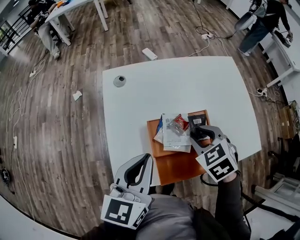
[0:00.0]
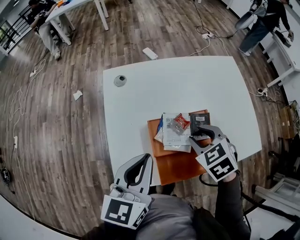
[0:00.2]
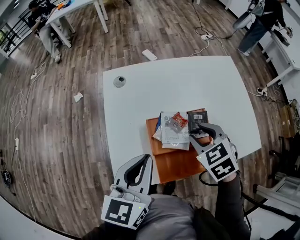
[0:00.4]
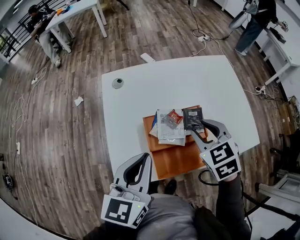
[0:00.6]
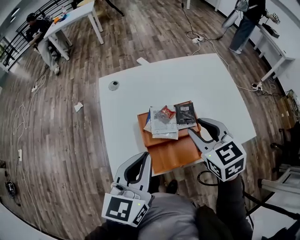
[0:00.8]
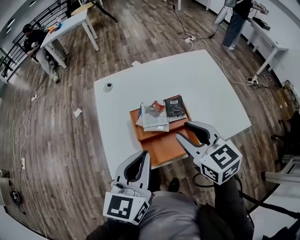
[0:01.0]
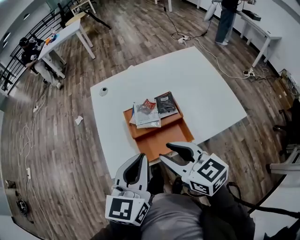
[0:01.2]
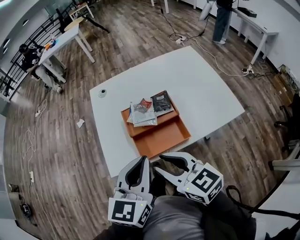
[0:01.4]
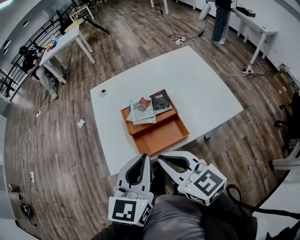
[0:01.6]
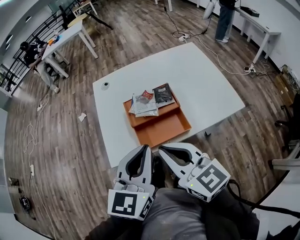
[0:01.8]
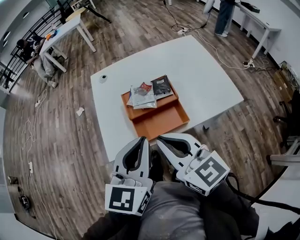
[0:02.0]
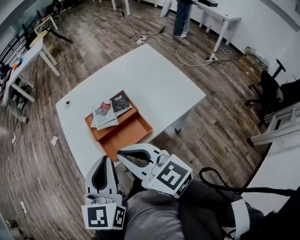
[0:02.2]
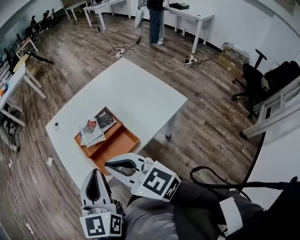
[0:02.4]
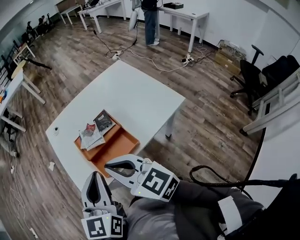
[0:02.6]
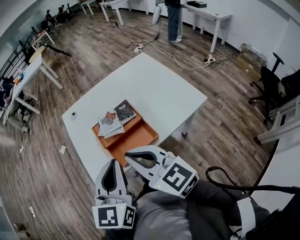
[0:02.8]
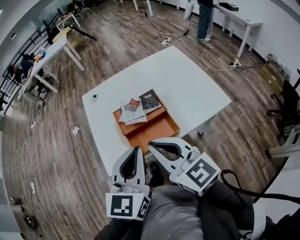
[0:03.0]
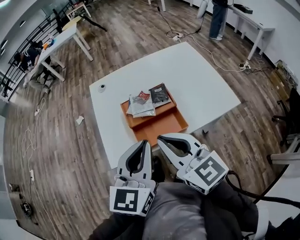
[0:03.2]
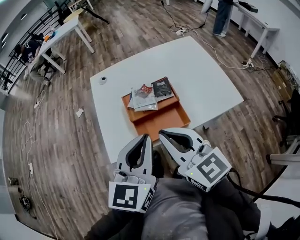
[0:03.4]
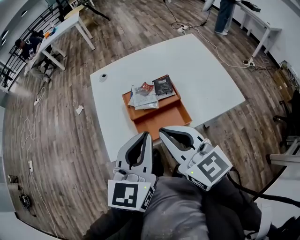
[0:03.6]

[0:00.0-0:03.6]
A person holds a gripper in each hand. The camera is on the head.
0:00.0 to 0:01.8: The left gripper moves backward and to the right, approximately 20 cm. The right gripper moves backward and upward, some 25 cm, and points its fingers about 50 degrees further upward.
0:01.8 to 0:03.6: There are only small adjustments of the grippers.

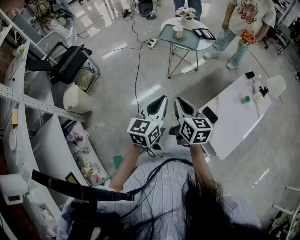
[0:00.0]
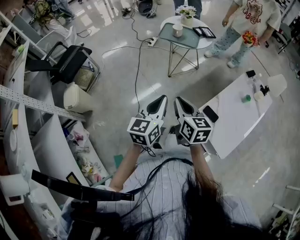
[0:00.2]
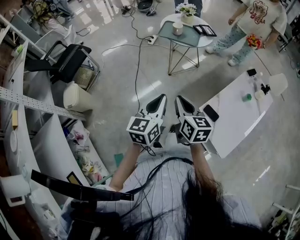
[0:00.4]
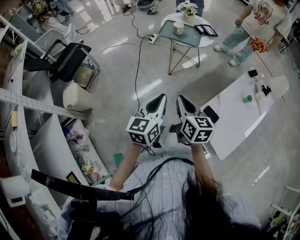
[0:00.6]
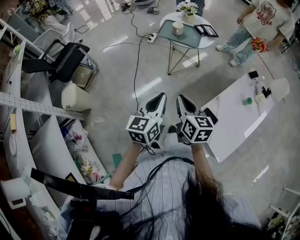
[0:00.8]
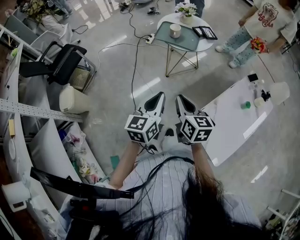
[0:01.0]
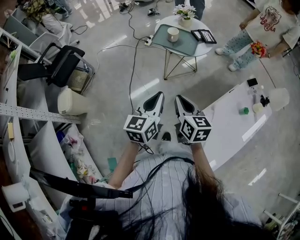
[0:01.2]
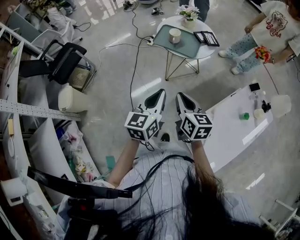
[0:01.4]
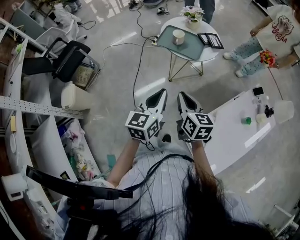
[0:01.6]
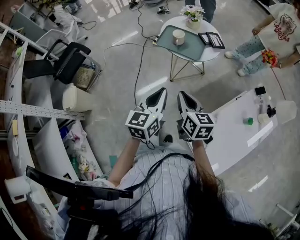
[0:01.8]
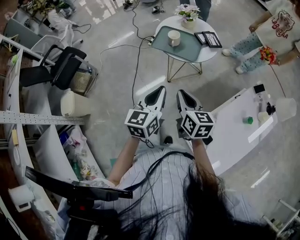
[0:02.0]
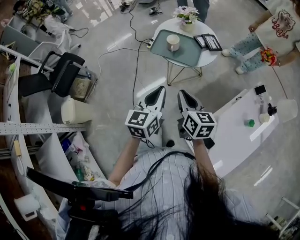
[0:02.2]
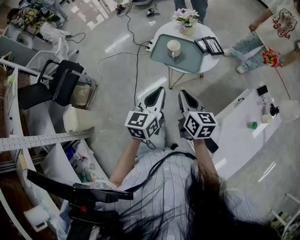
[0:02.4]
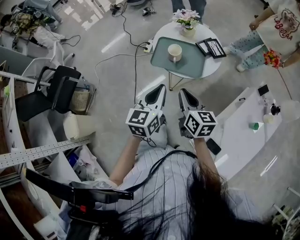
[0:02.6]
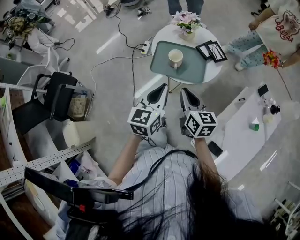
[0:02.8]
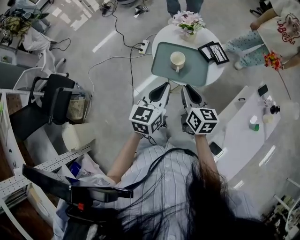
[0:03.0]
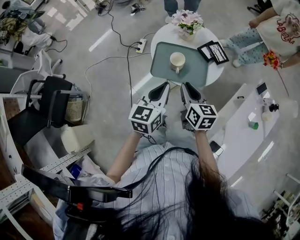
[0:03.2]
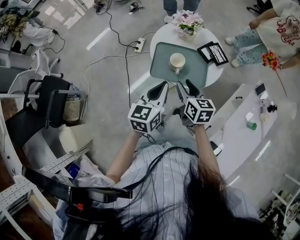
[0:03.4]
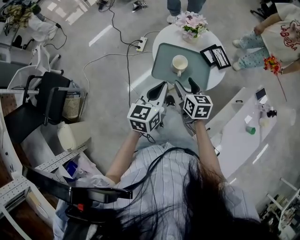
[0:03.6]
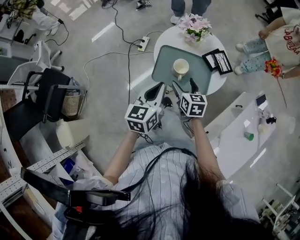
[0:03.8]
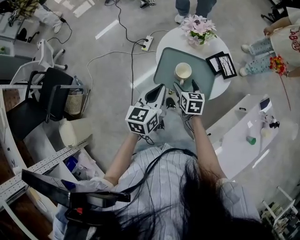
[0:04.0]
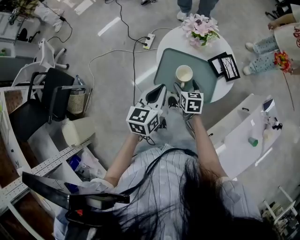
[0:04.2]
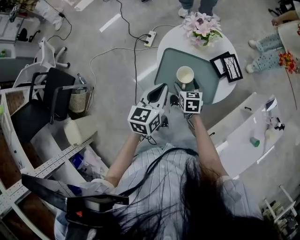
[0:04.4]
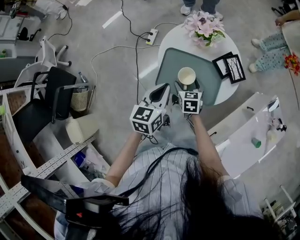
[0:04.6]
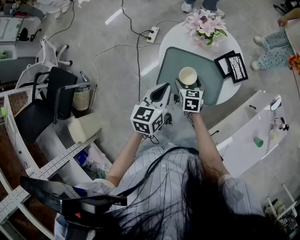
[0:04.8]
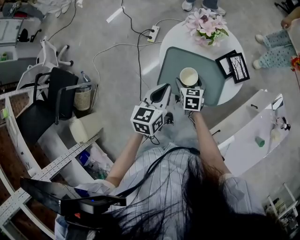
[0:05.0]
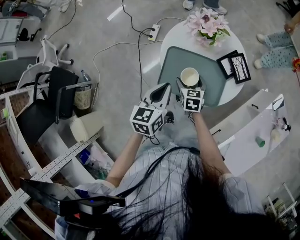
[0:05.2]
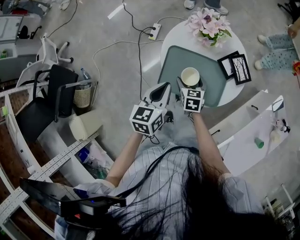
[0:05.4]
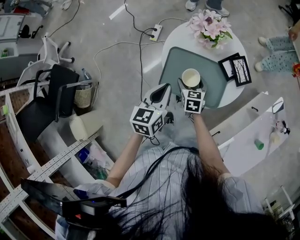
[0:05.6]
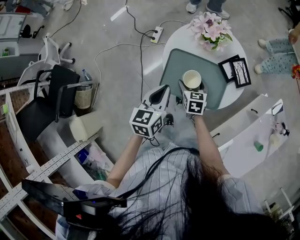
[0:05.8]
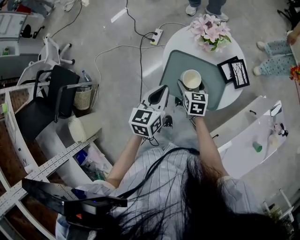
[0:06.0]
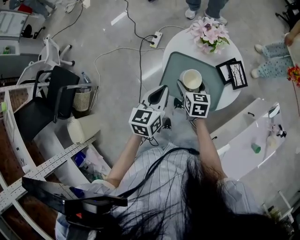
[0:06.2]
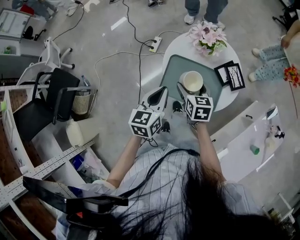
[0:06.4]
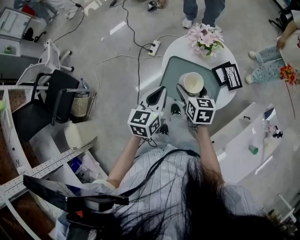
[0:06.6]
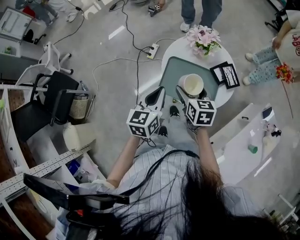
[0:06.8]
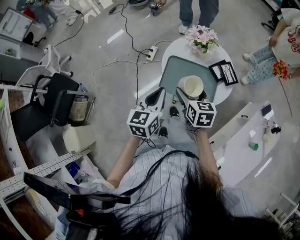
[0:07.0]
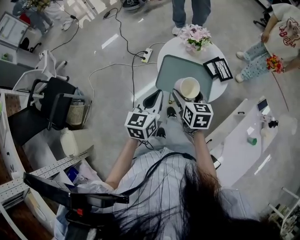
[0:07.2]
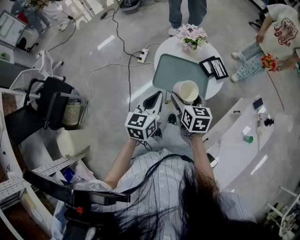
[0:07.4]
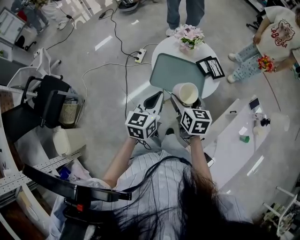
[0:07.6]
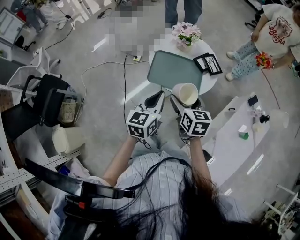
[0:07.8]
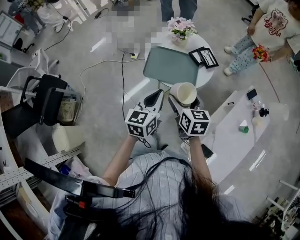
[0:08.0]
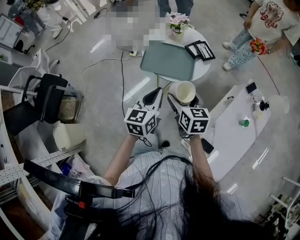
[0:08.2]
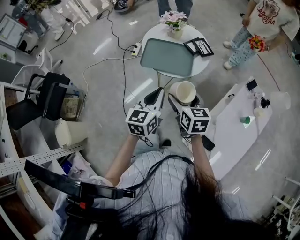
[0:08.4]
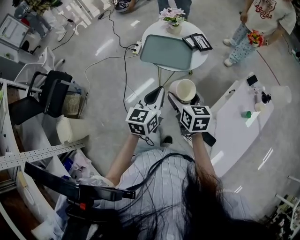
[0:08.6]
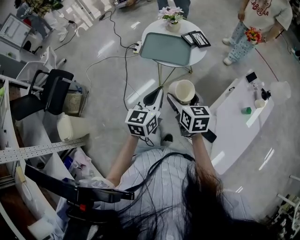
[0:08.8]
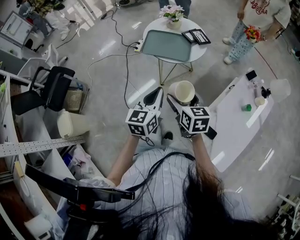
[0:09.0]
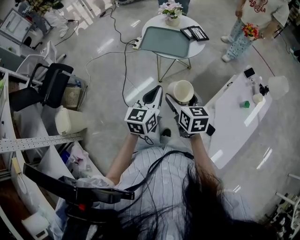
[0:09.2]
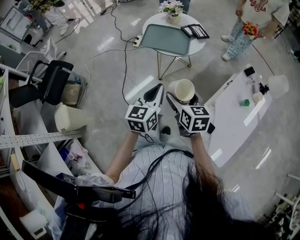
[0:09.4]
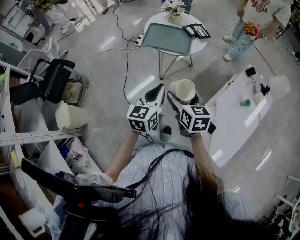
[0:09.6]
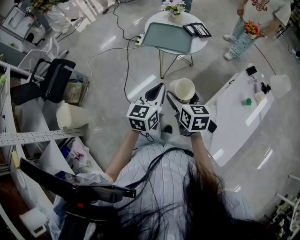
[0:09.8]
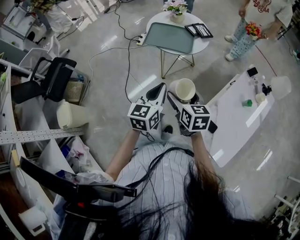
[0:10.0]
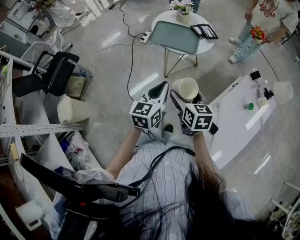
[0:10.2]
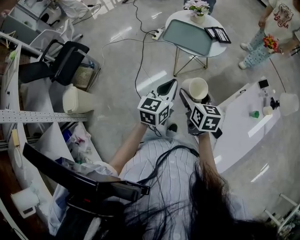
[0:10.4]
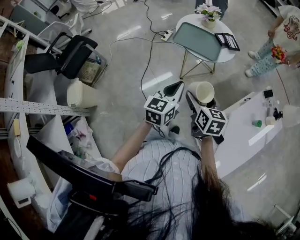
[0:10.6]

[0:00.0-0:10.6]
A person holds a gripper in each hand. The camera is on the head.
0:00.0 to 0:01.6: The right gripper goes about 20 cm forward and to the right. The left gripper moves forward, approximately 20 cm.
0:01.6 to 0:03.0: The two grippers go roughly 30 cm forward.
0:03.0 to 0:04.6: The right gripper moves downward and forward, some 25 cm, rotates about 30 degrees, and opens. The left gripper moves forward and downward, approximately 15 cm.
0:04.6 to 0:06.0: There are only small adjustments of the grippers.
0:06.0 to 0:07.6: The right gripper goes approximately 25 cm upward and backward. The left gripper shifts roughly 15 cm backward and upward.
0:07.6 to 0:09.0: The right gripper shifts about 25 cm backward, while the left gripper shifts about 25 cm backward and to the right.
0:09.0 to 0:10.6: The grippers stay close to where they were, moving slightly.

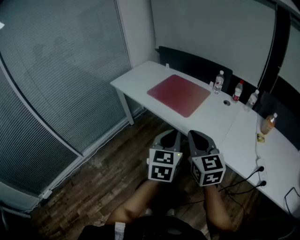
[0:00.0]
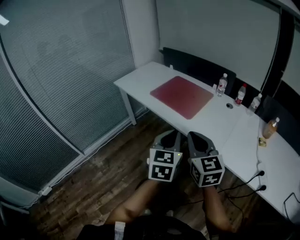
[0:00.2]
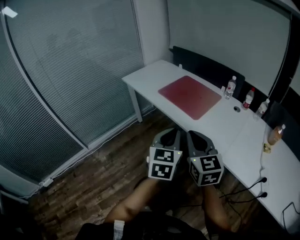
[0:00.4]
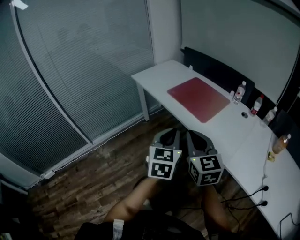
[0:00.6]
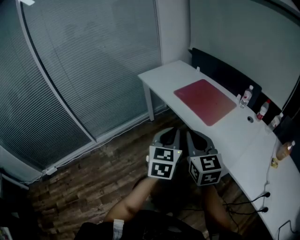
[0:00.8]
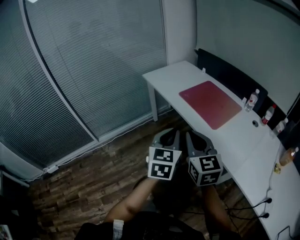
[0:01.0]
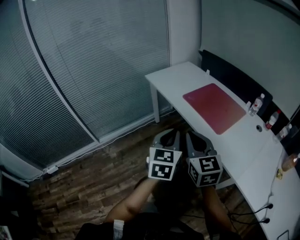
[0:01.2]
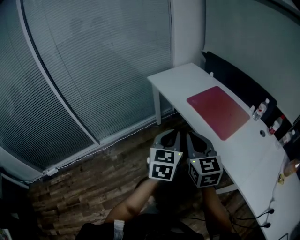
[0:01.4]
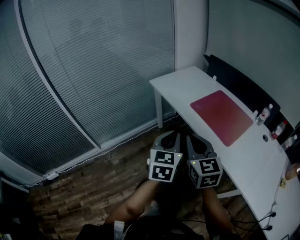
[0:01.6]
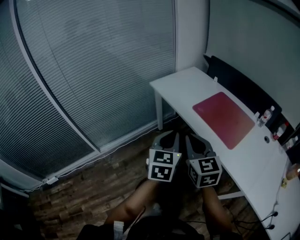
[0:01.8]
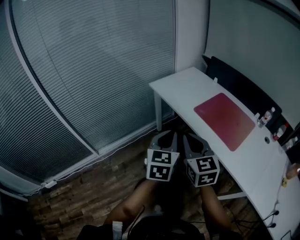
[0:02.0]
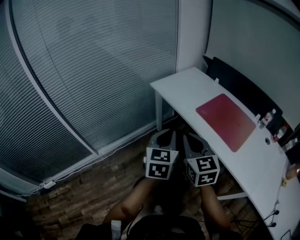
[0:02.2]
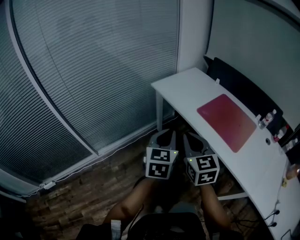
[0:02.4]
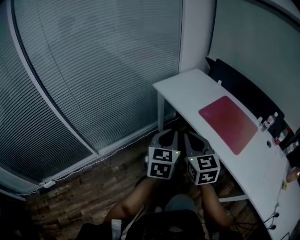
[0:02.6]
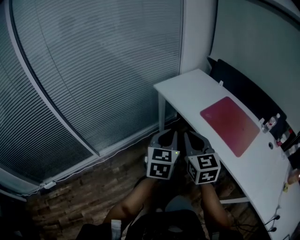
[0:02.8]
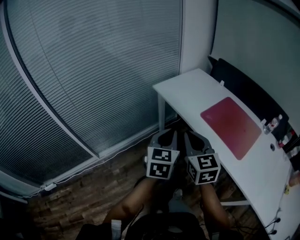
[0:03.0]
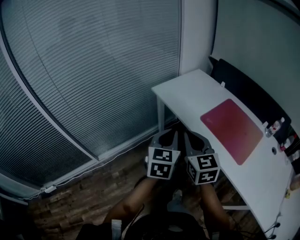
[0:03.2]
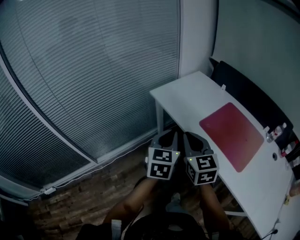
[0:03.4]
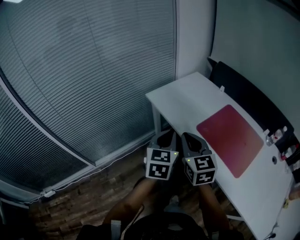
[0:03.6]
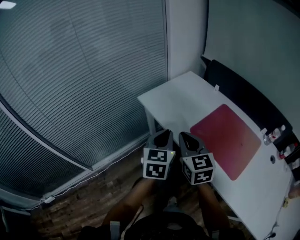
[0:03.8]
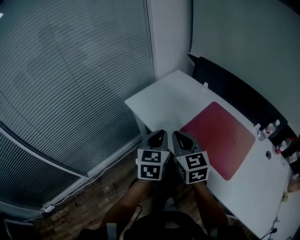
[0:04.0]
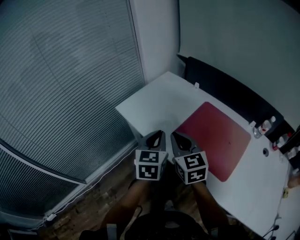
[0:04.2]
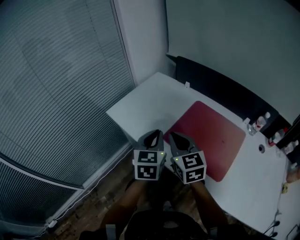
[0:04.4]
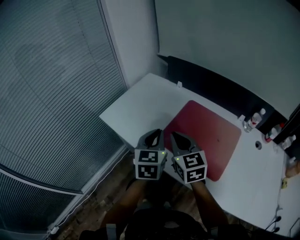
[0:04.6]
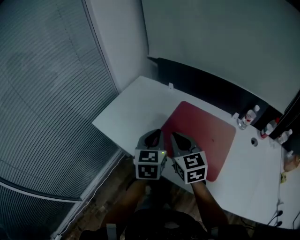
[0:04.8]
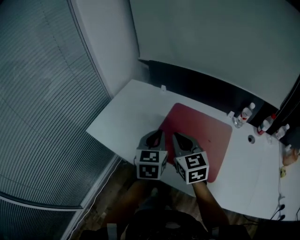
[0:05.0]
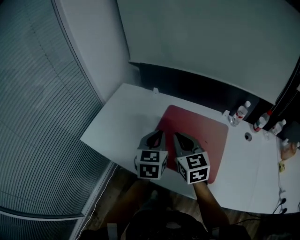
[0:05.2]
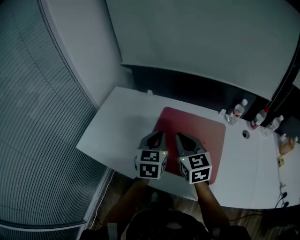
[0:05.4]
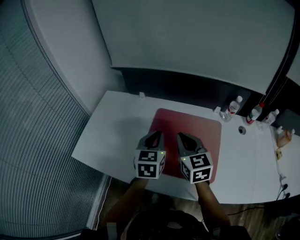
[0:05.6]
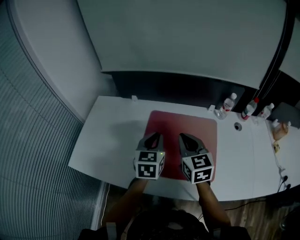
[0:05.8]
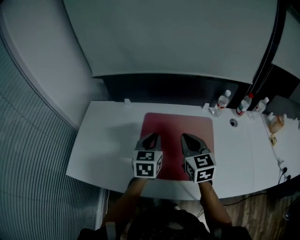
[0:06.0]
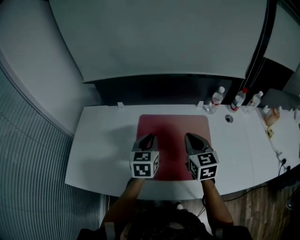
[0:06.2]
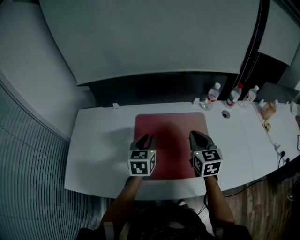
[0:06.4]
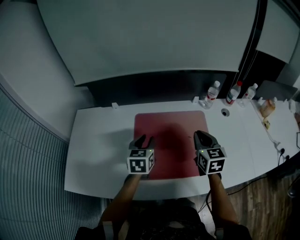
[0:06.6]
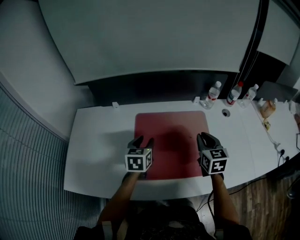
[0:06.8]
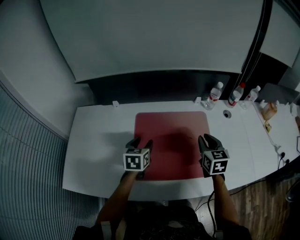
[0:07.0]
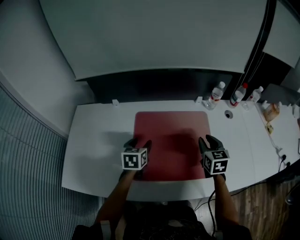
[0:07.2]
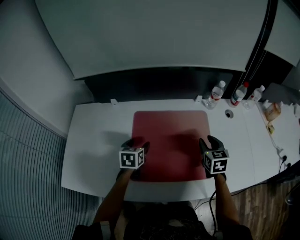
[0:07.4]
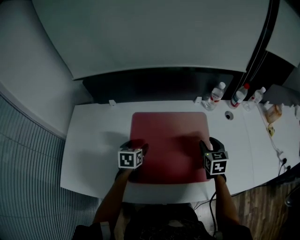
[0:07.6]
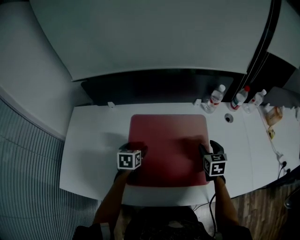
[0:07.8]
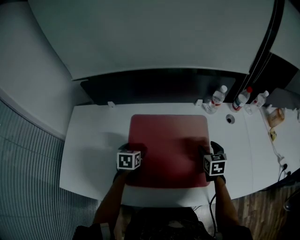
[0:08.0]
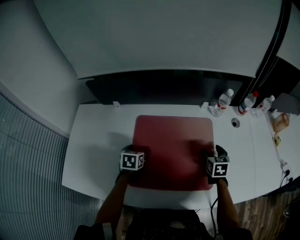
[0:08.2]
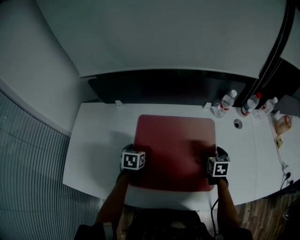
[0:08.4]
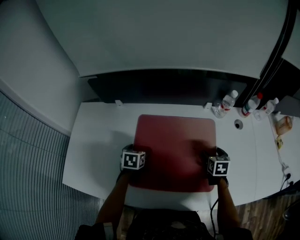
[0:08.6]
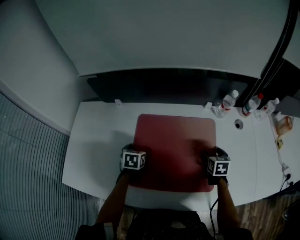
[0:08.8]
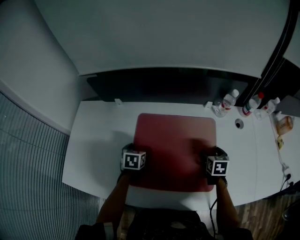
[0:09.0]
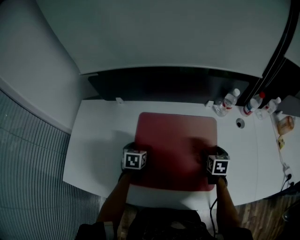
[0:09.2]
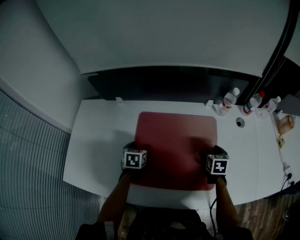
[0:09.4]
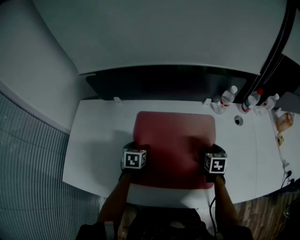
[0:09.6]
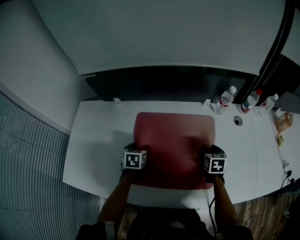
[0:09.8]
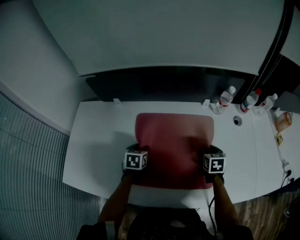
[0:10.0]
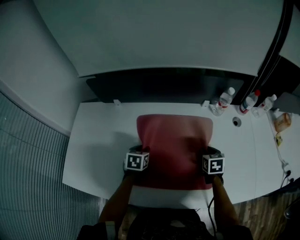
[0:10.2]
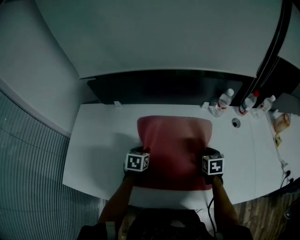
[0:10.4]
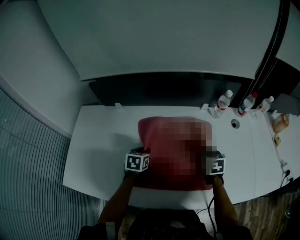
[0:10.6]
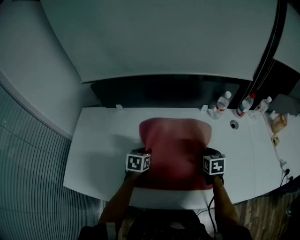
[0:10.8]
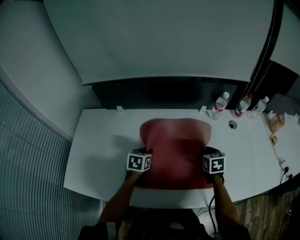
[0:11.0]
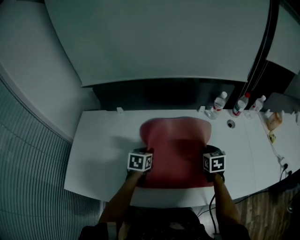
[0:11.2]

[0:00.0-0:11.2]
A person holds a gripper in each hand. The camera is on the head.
0:00.0 to 0:01.6: Both grippers move to the left and forward, roughly 30 cm.
0:01.6 to 0:03.2: Both grippers move forward and to the left, about 20 cm.
0:03.2 to 0:04.8: The grippers both shift to the right and forward by some 35 cm.
0:04.8 to 0:06.4: The right gripper ends up about 25 cm from where it was, and rotates approximately 40 degrees. The left gripper shifts by some 20 cm, and changes its angle by roughly 30 degrees.
0:06.4 to 0:08.0: The left gripper travels downward by roughly 15 cm, swivels approximately 20 degrees, and opens its fingers, while the right gripper goes some 20 cm downward and to the right, turns by roughly 20 degrees, and opens its fingers.
0:08.0 to 0:09.6: The grippers stay close to where they were, moving slightly.
0:09.6 to 0:11.2: Both grippers move upward, roughly 5 cm. The right gripper closes, while the left gripper closes up.
